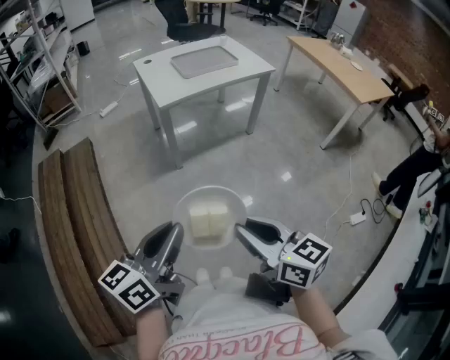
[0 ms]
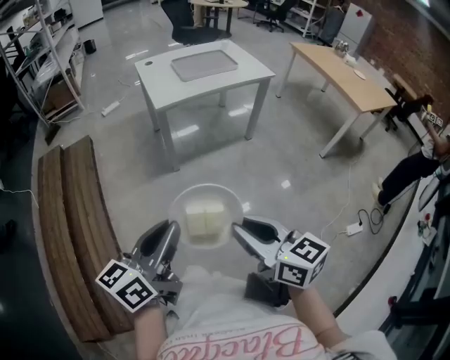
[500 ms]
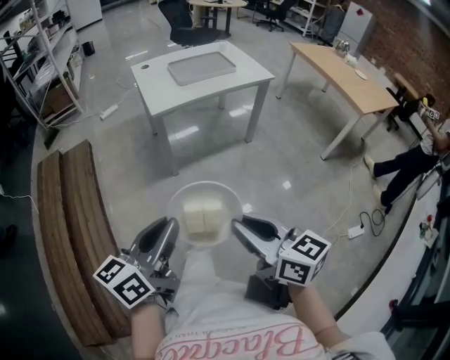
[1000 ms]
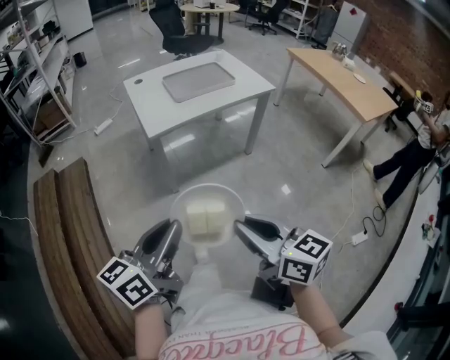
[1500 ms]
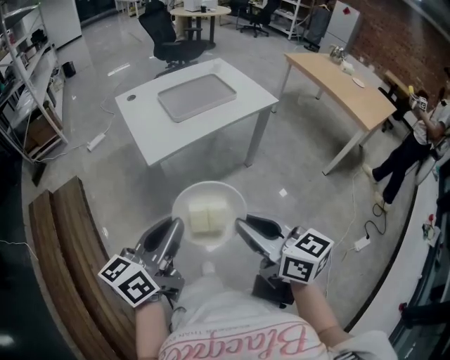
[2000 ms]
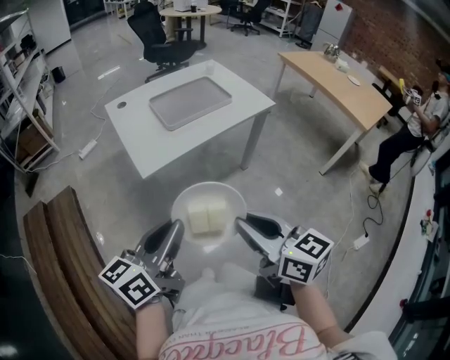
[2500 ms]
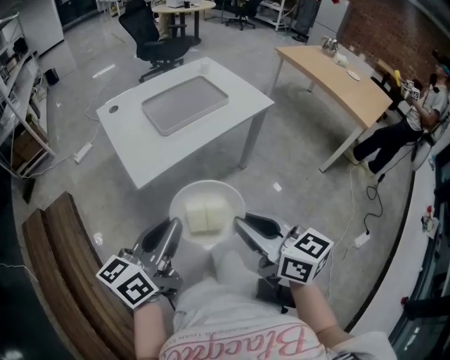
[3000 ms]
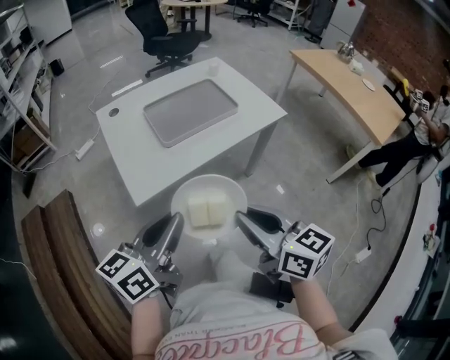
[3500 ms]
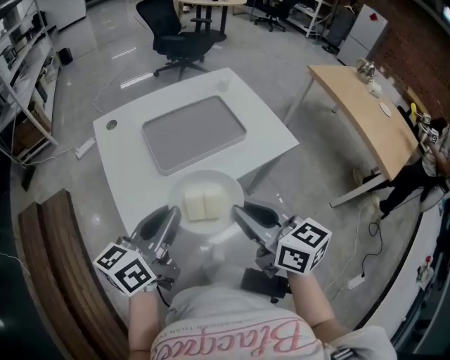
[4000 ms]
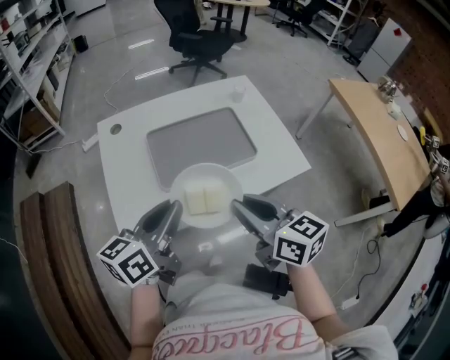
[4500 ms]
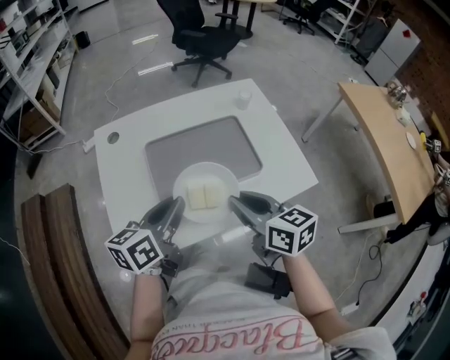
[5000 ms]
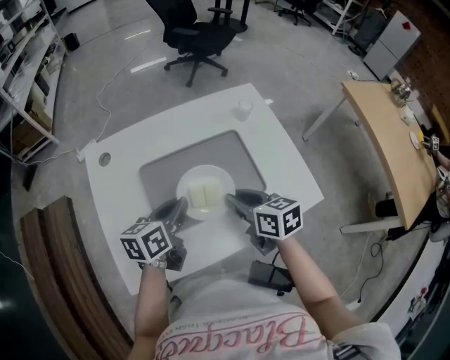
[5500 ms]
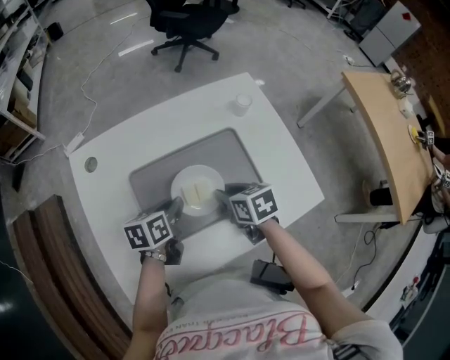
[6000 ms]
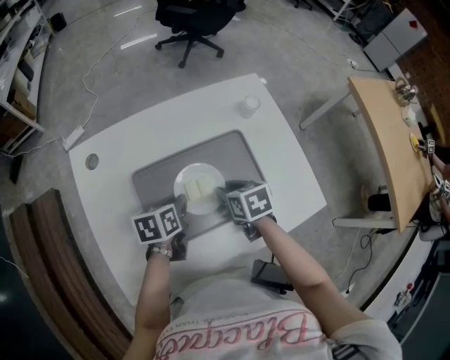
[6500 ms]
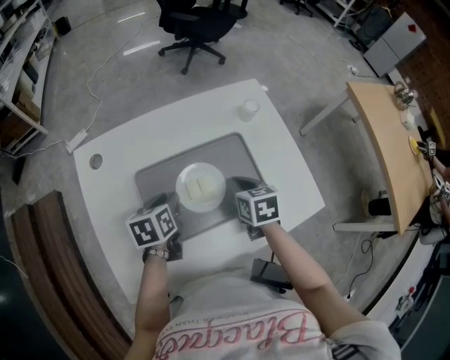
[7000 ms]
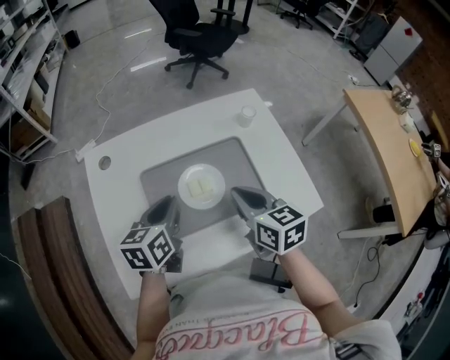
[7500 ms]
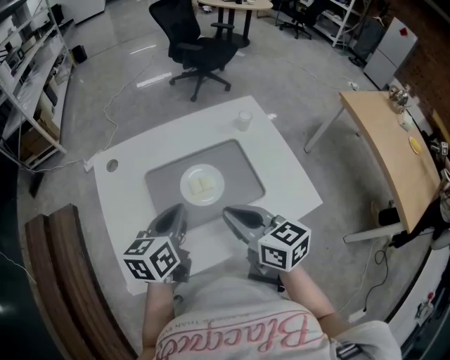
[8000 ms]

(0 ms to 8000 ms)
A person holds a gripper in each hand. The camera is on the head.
0 ms - 2000 ms: Both grippers travel together forward, some 25 cm.
2000 ms - 4000 ms: Both grippers travel together forward, some 30 cm.
4000 ms - 6000 ms: The grippers both shift forward and downward by approximately 35 cm. The right gripper tilts its fingers some 40 degrees downward. The left gripper tilts its fingers some 30 degrees downward.
6000 ms - 8000 ms: The right gripper heads upward and backward, covering about 15 cm, and angles its fingers upward, by roughly 30 degrees. The left gripper heads upward, covering some 15 cm, and swivels some 20 degrees.

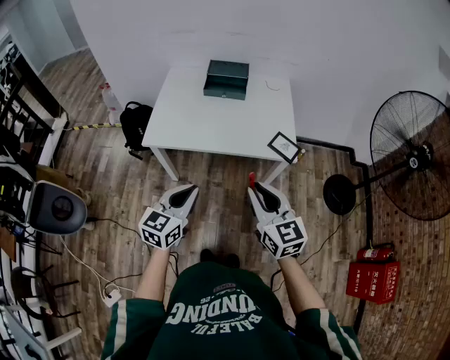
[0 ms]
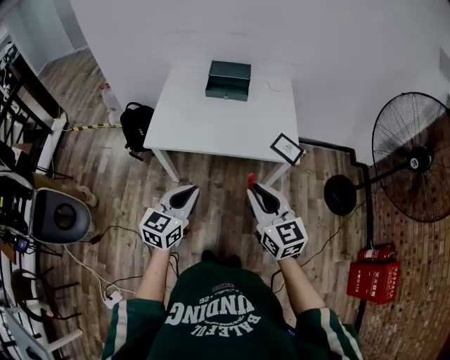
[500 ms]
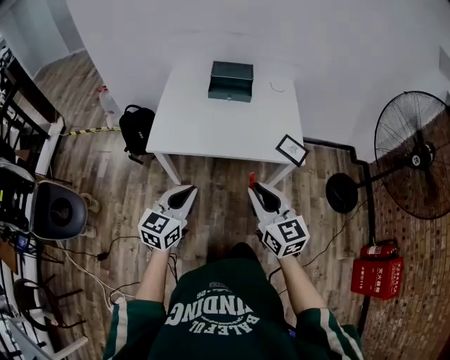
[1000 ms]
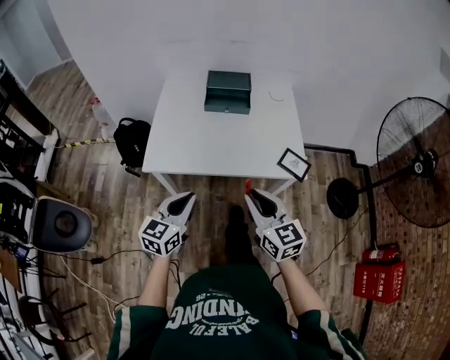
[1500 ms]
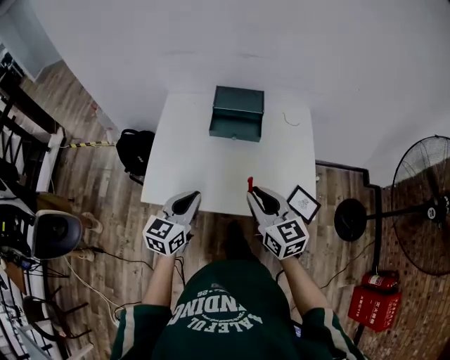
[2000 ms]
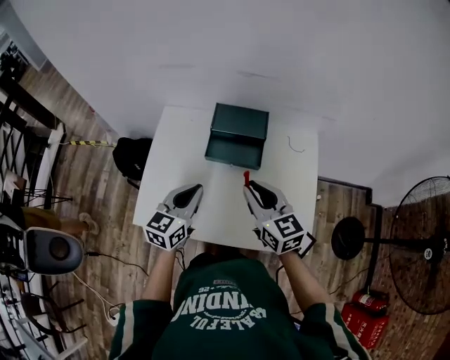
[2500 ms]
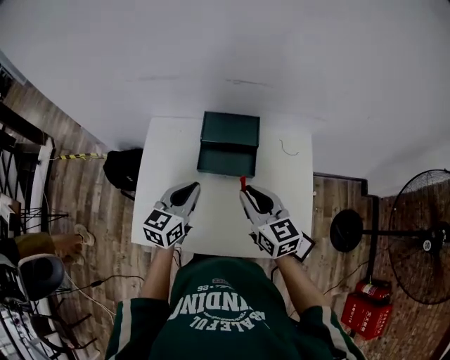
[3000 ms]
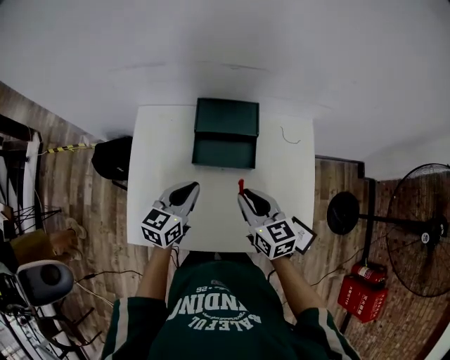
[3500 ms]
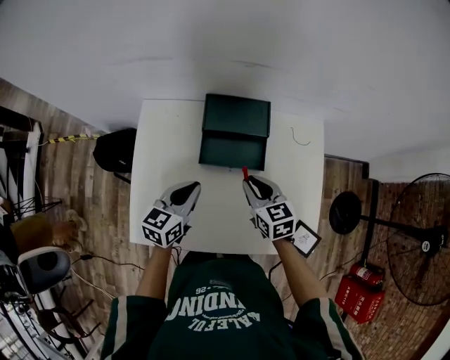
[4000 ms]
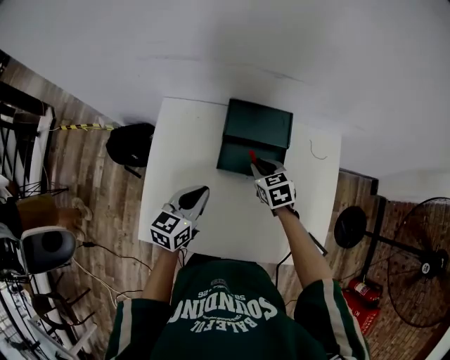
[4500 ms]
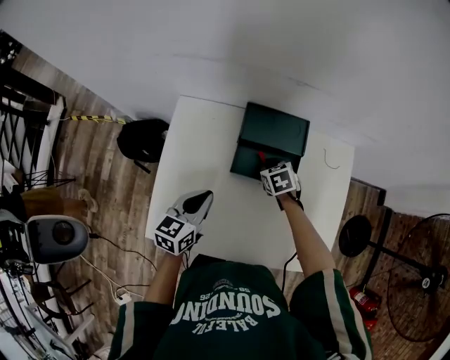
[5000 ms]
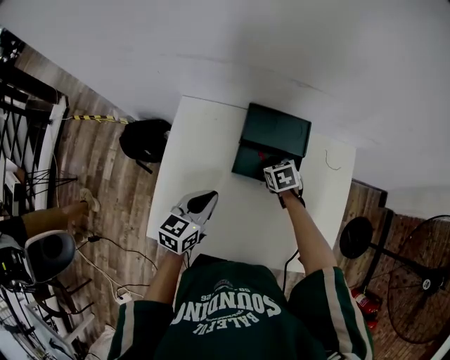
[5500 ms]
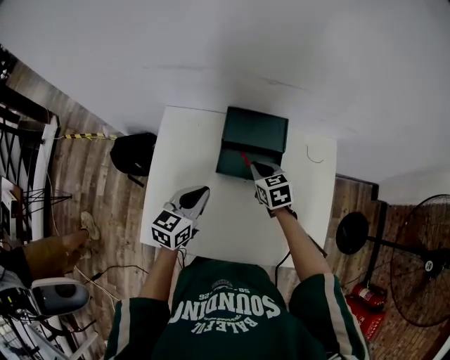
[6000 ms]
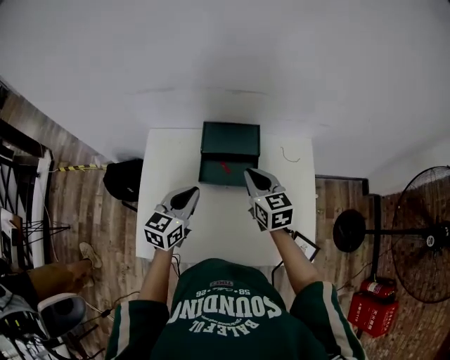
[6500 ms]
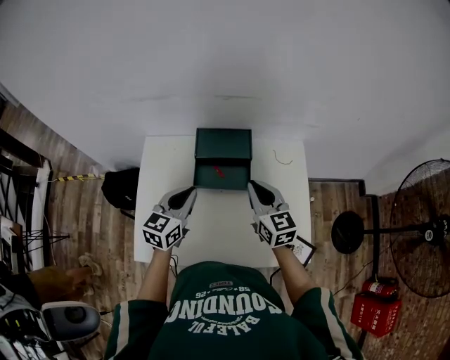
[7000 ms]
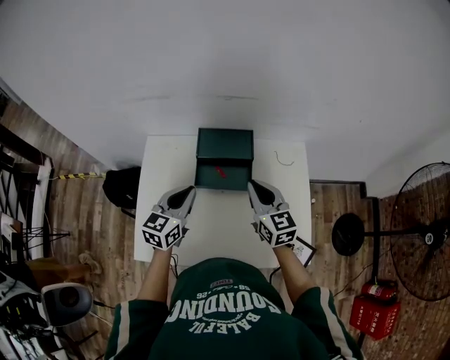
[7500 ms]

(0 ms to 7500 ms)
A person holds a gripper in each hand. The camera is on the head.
0 ms - 2000 ms: The two grippers go some 30 cm forward.
2000 ms - 4000 ms: The right gripper moves forward and downward, roughly 30 cm, and turns by approximately 20 degrees. Meanwhile the left gripper moves forward, about 25 cm.
4000 ms - 5500 ms: The right gripper travels downward and forward by about 20 cm, and rotates approximately 30 degrees.
5500 ms - 7500 ms: The left gripper shifts roughly 10 cm upward and to the right; the right gripper goes roughly 25 cm upward and backward, and points its fingers some 50 degrees further upward.

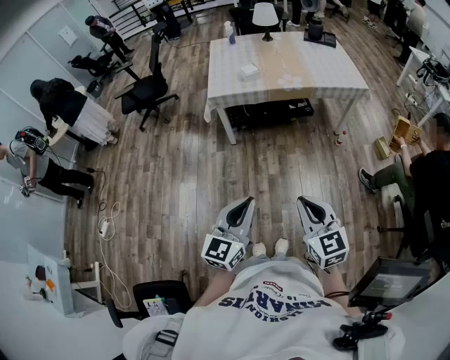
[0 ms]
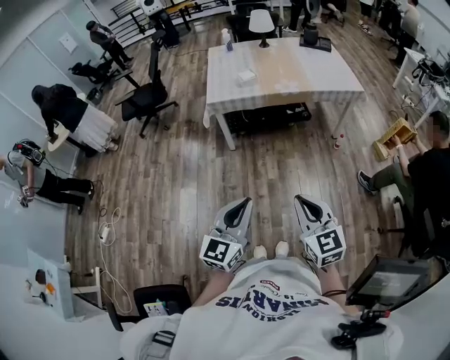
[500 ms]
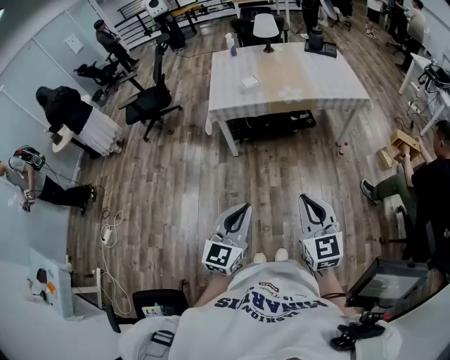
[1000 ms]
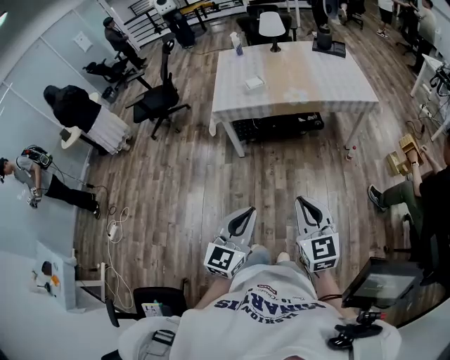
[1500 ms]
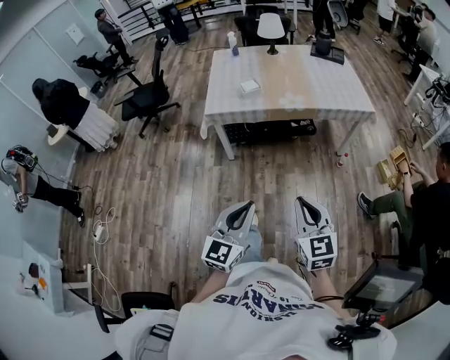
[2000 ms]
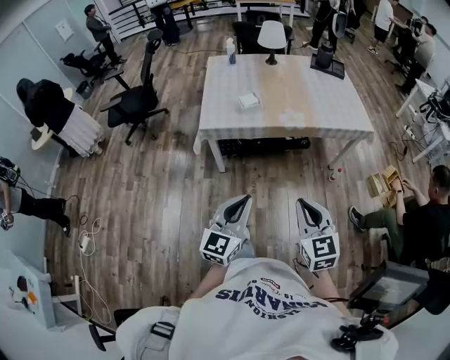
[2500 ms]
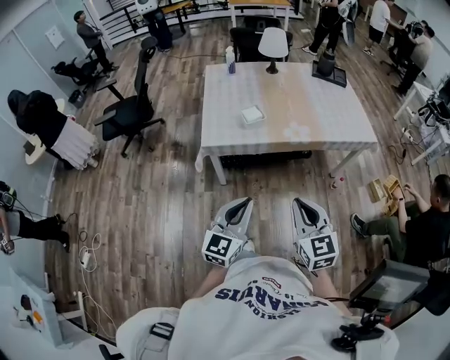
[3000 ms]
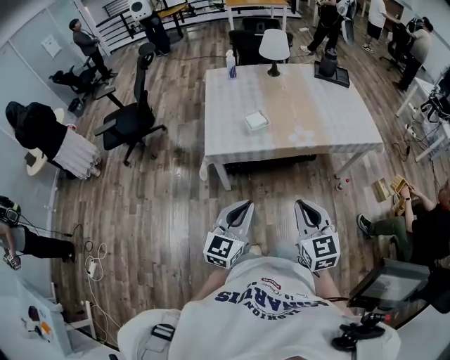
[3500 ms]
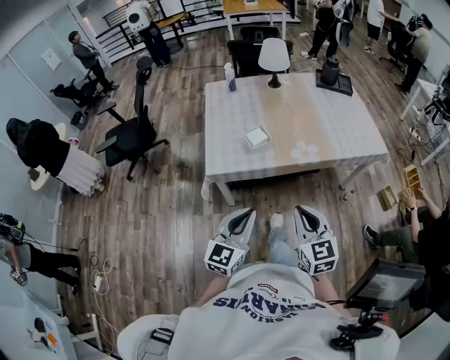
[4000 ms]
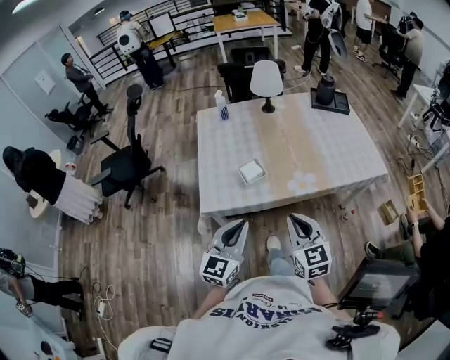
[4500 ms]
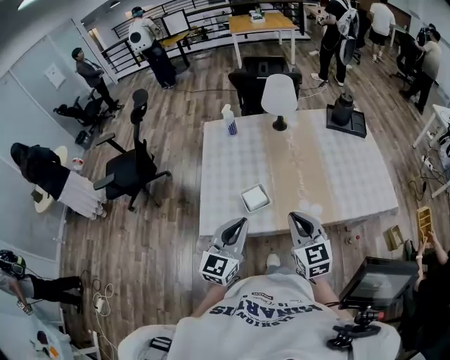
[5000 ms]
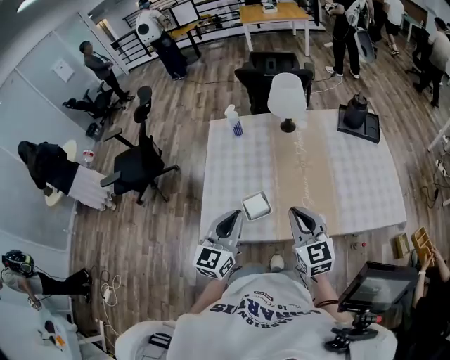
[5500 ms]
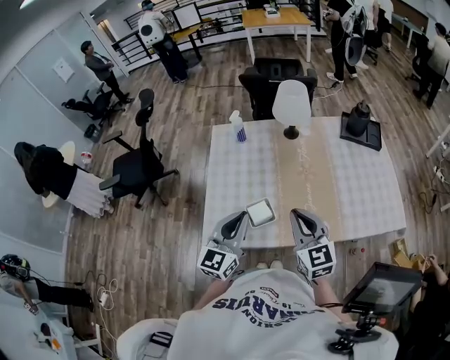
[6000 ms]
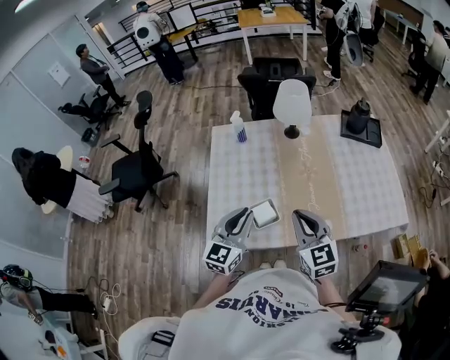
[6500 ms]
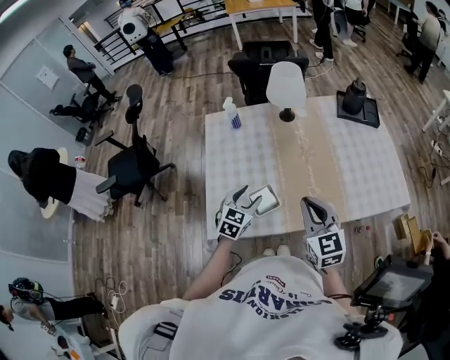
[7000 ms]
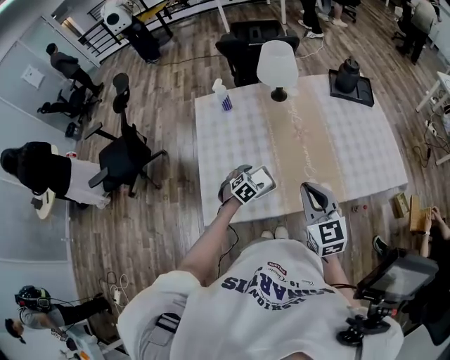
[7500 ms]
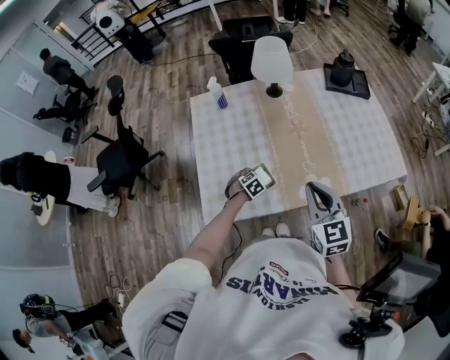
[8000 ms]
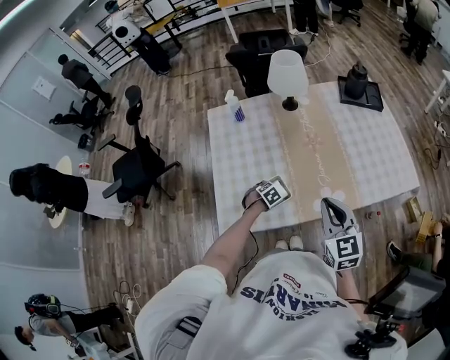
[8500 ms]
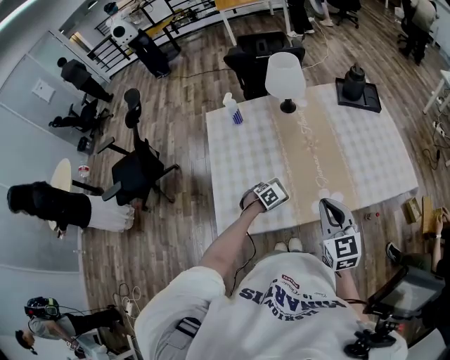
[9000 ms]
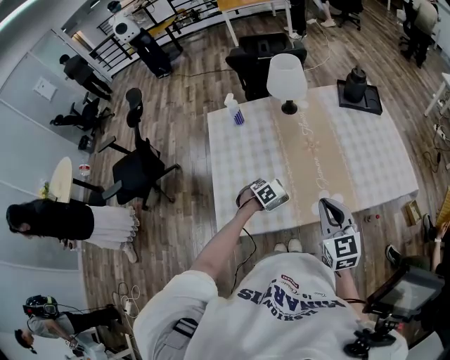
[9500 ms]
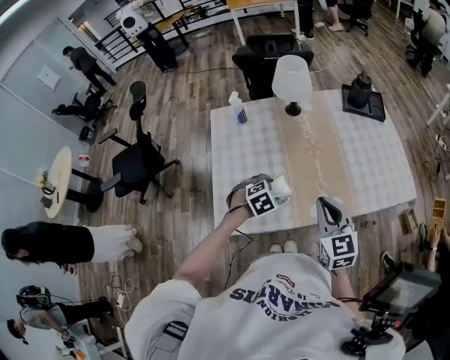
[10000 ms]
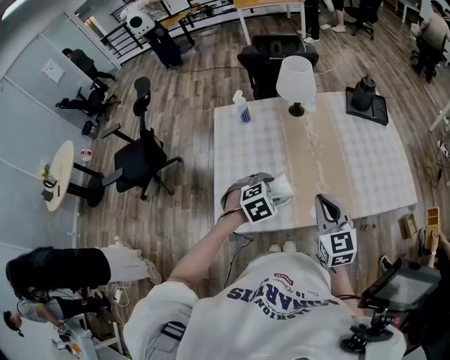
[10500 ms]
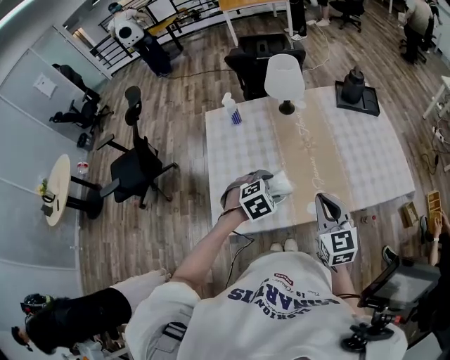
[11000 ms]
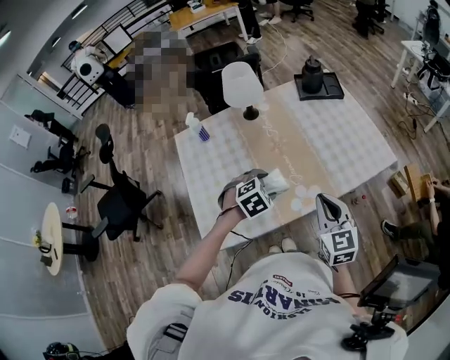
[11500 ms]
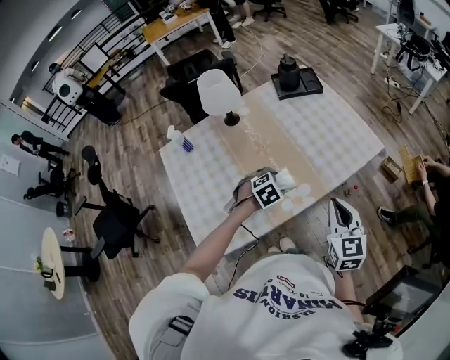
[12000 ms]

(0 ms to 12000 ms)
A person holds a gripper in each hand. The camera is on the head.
0 ms - 2000 ms: Both grippers travel together forward, about 10 cm.
2000 ms - 4000 ms: The grippers both shift forward and to the left by approximately 35 cm.
4000 ms - 6000 ms: Both grippers move forward, about 40 cm.
6000 ms - 8000 ms: The left gripper moves downward, about 40 cm, angles its fingers downward, by some 70 degrees, and opens.
8000 ms - 10000 ms: The left gripper shifts about 20 cm upward.
10000 ms - 12000 ms: The right gripper shifts by about 20 cm, and rotates some 30 degrees, while the left gripper changes place by about 20 cm, and swivels approximately 20 degrees.
